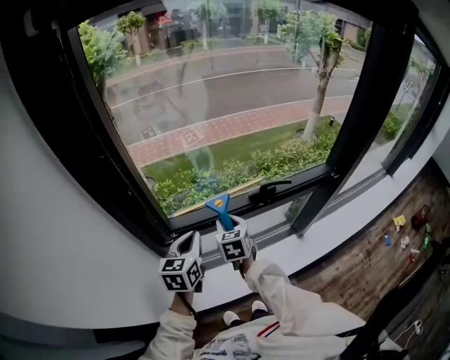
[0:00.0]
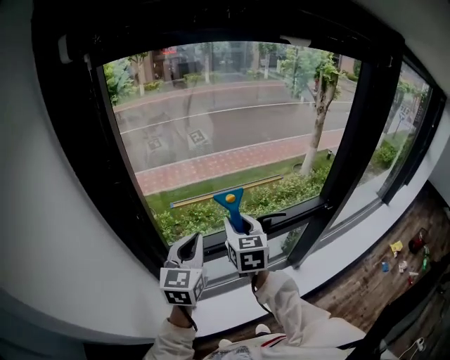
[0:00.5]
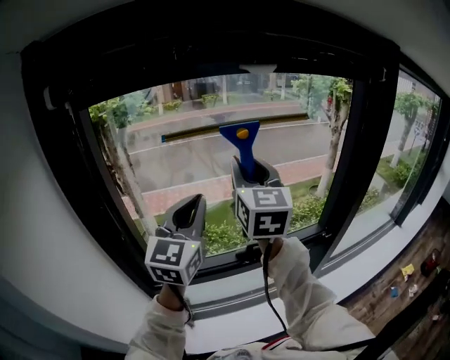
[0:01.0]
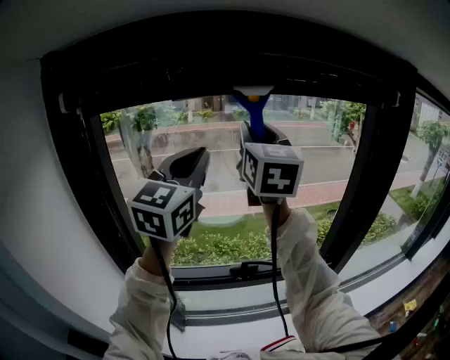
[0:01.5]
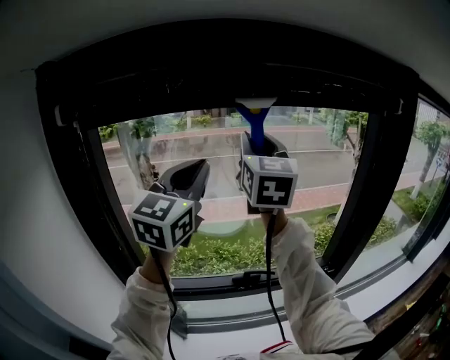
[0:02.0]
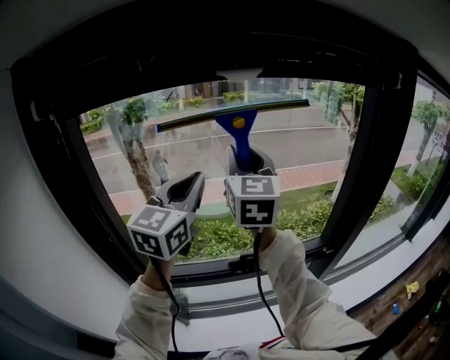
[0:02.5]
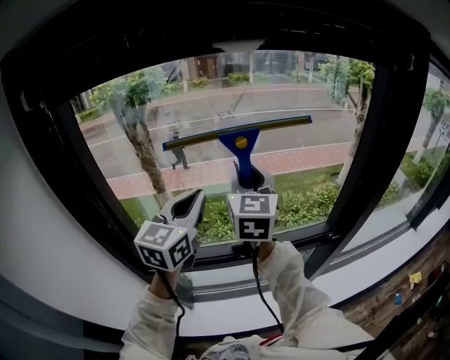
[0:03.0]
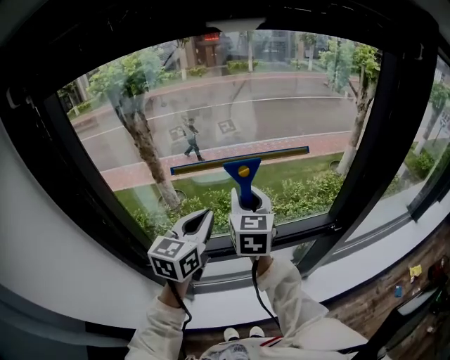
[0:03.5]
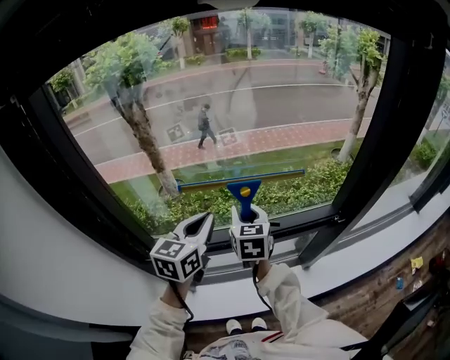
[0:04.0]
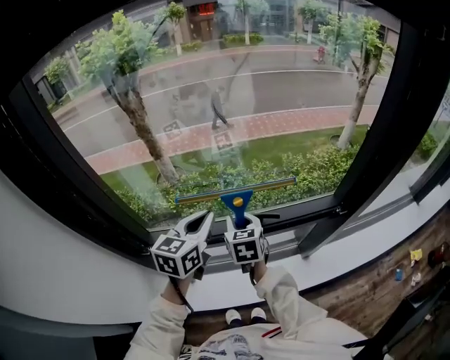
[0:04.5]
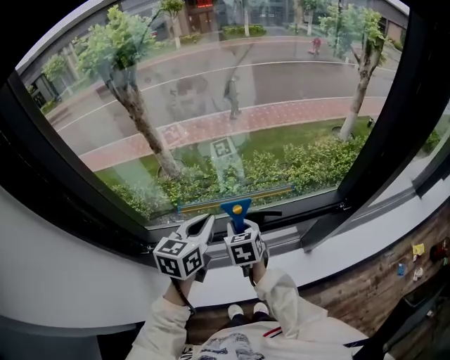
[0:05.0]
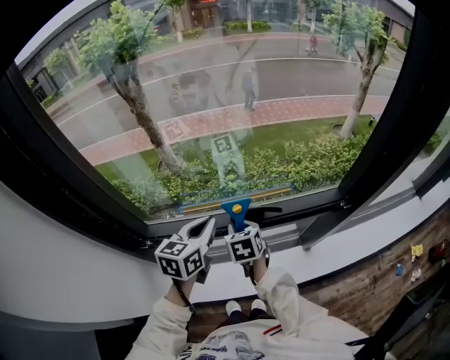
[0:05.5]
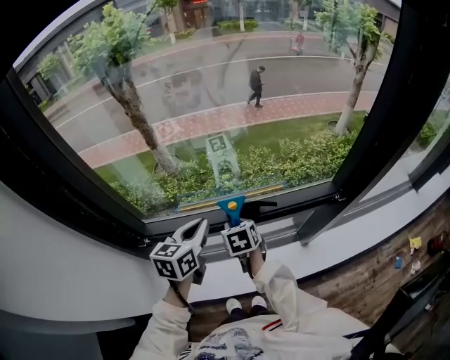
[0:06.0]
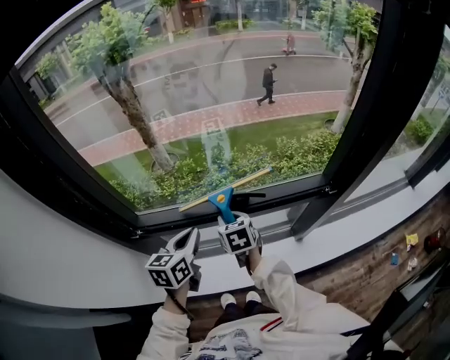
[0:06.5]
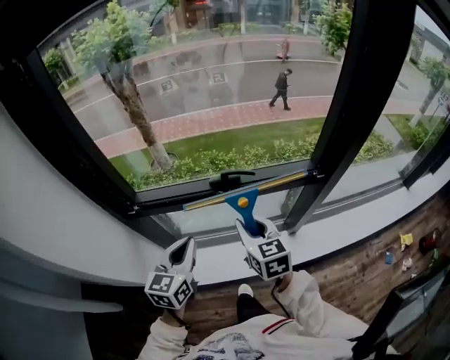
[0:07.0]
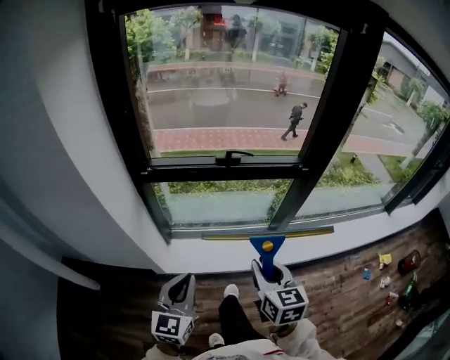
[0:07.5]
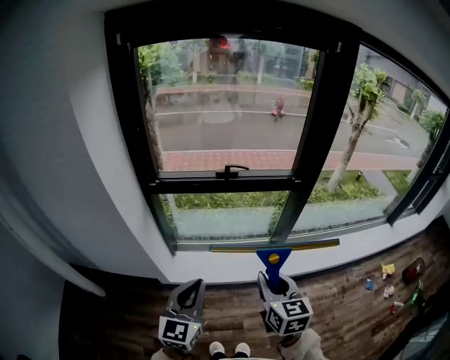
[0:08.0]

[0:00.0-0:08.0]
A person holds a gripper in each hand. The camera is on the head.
0:00.0 to 0:02.0: Both grippers move upward, about 50 cm. The left gripper angles its fingers upward, by some 30 degrees. Meanwhile the right gripper tips its fingers upward by some 50 degrees.
0:02.0 to 0:04.0: Both grippers move downward, roughly 40 cm. The right gripper tilts its fingers roughly 40 degrees downward; the left gripper changes its angle by approximately 30 degrees.
0:04.0 to 0:06.0: The left gripper moves downward, about 10 cm. The right gripper goes about 15 cm downward, and changes its angle by about 30 degrees.
0:06.0 to 0:08.0: The two grippers travel together, backward, about 60 cm. The left gripper turns by about 30 degrees. Meanwhile the right gripper rotates some 30 degrees.

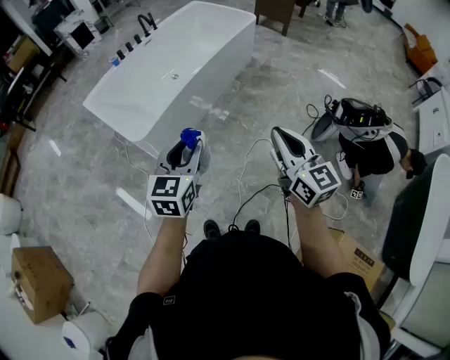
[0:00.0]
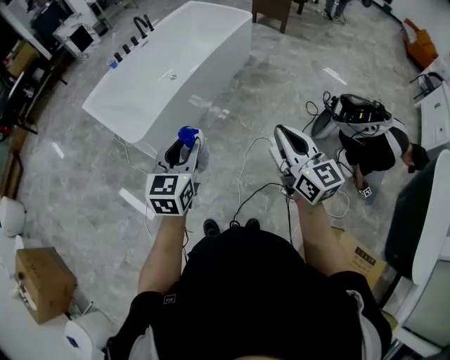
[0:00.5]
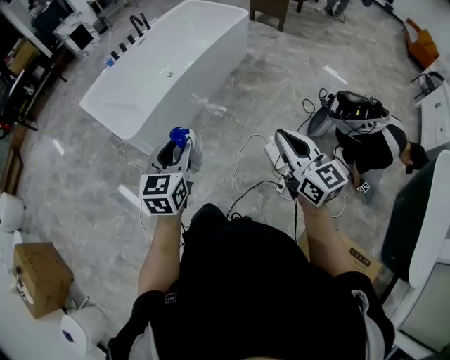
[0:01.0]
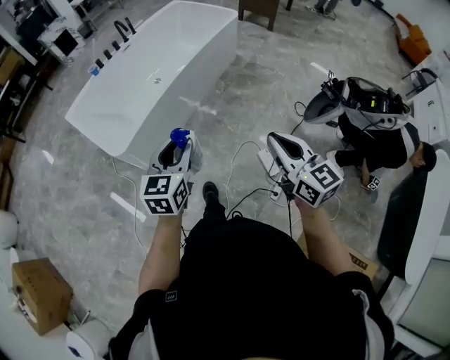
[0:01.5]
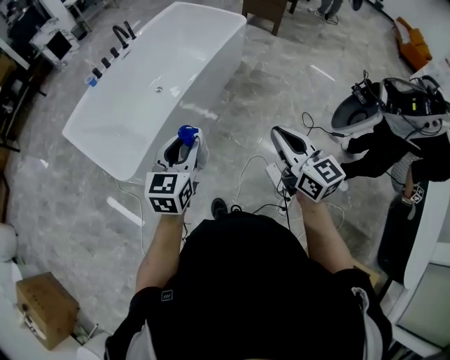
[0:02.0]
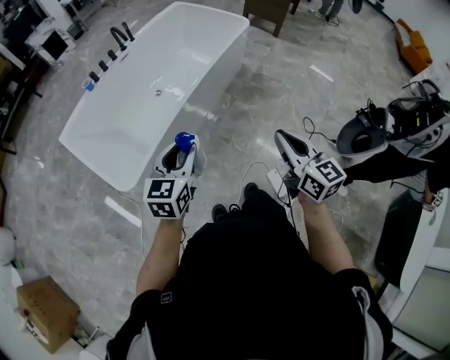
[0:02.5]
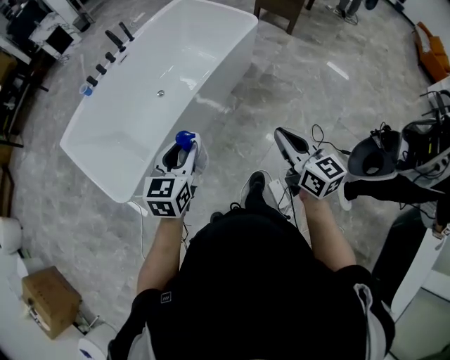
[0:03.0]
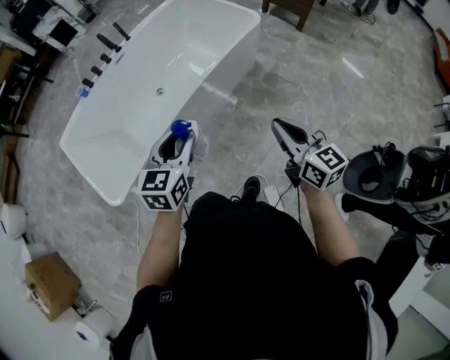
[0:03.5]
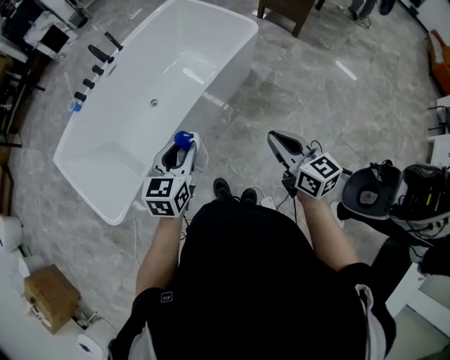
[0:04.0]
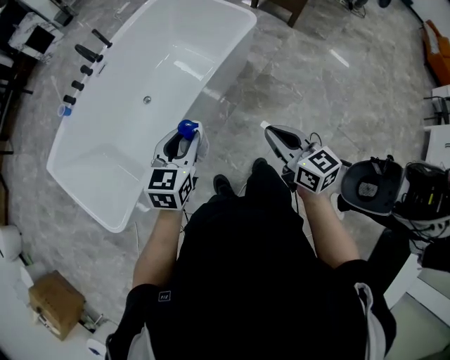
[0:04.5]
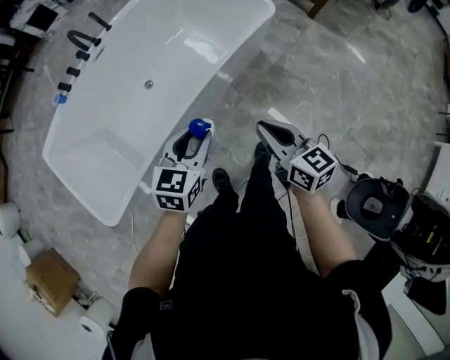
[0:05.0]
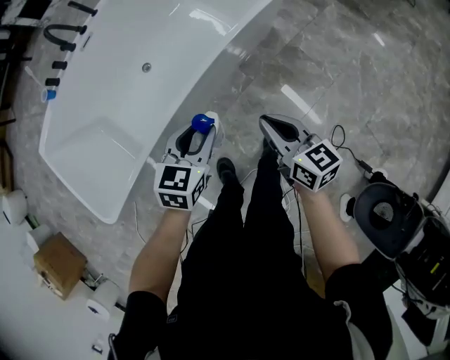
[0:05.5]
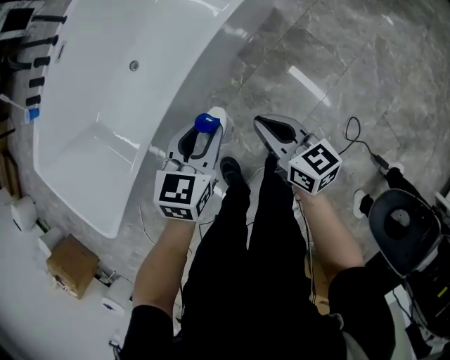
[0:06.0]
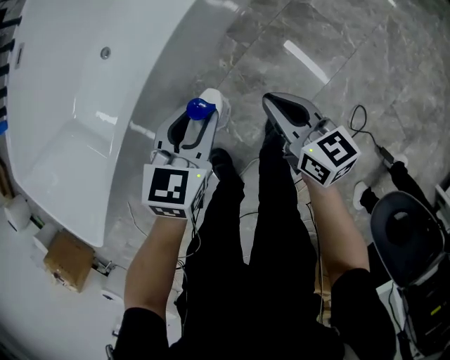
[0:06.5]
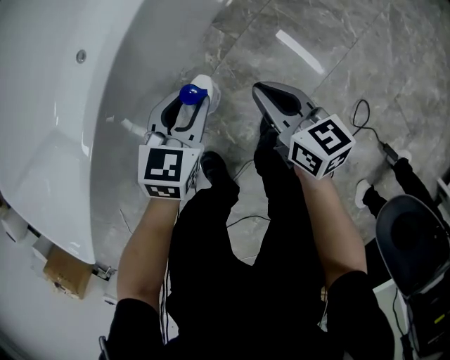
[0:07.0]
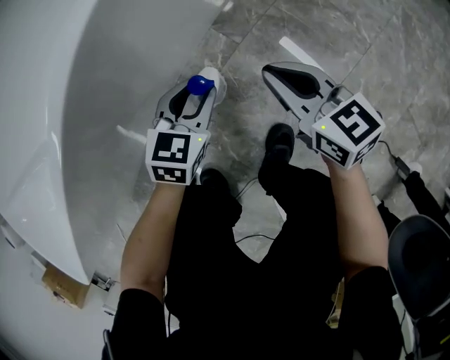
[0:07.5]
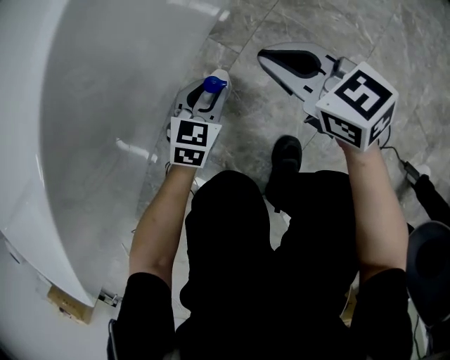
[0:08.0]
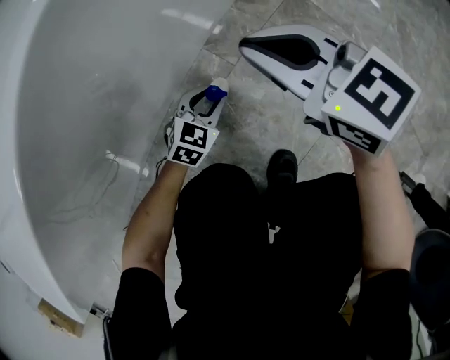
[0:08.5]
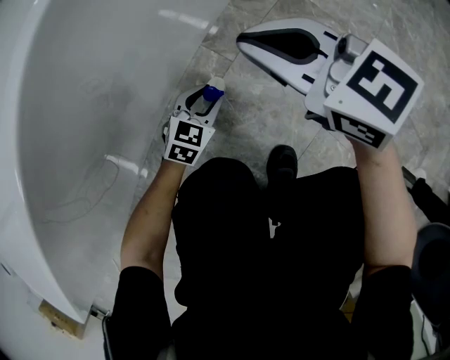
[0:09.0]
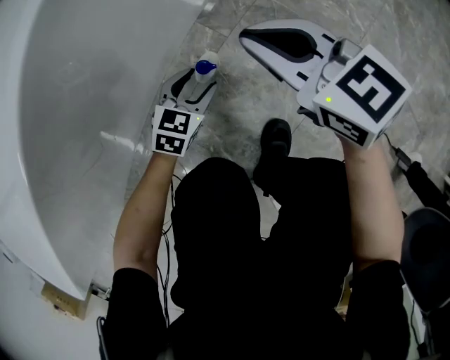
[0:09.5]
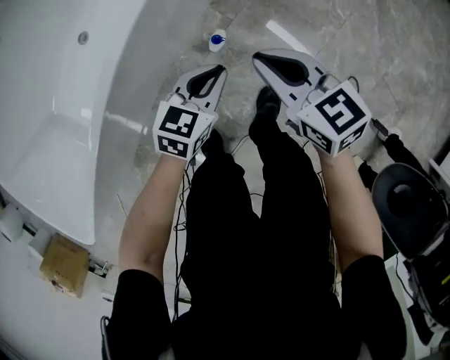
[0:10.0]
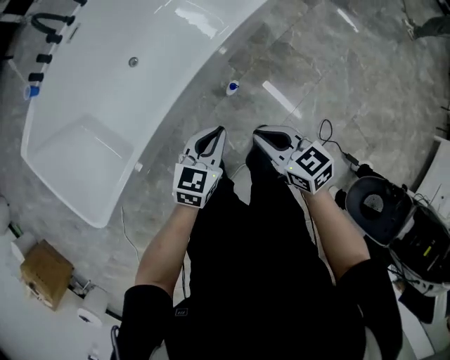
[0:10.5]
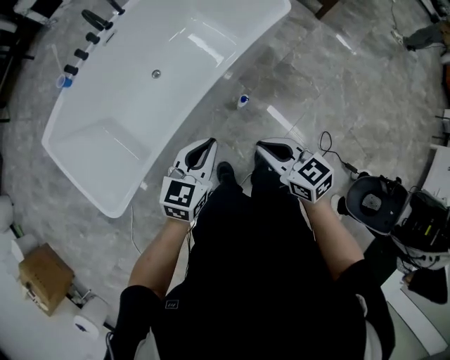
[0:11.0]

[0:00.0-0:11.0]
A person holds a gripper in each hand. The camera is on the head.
0:00.0 to 0:02.0: The two grippers go about 25 cm forward.
0:02.0 to 0:03.5: Both grippers move forward and to the right, roughly 35 cm.
0:03.5 to 0:05.5: The right gripper moves forward and downward, about 35 cm; the left gripper moves downward, forward and to the right, about 35 cm.
0:05.5 to 0:07.5: Both grippers travel together downward, approximately 40 cm.
0:07.5 to 0:09.0: The left gripper goes roughly 15 cm downward. Meanwhile the right gripper is displaced forward by roughly 5 cm, and turns by about 20 degrees.
0:09.0 to 0:11.0: The right gripper heads upward and backward, covering approximately 60 cm. Meanwhile the left gripper goes roughly 70 cm upward, swivels about 30 degrees, and closes.

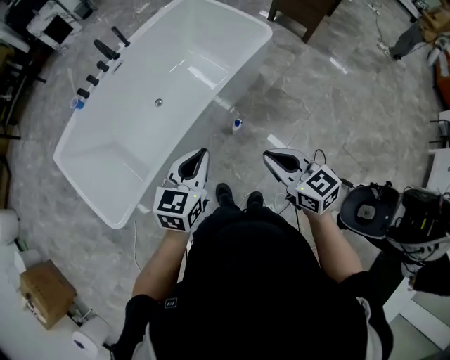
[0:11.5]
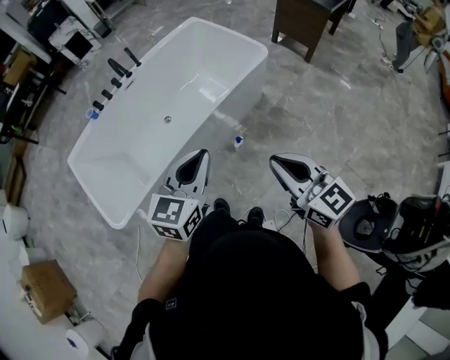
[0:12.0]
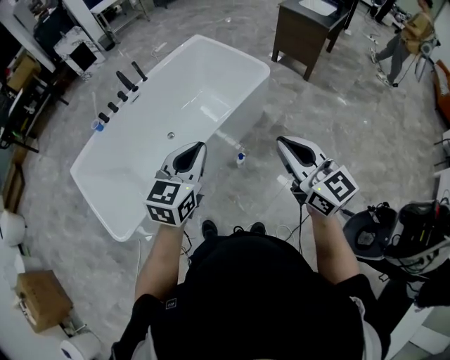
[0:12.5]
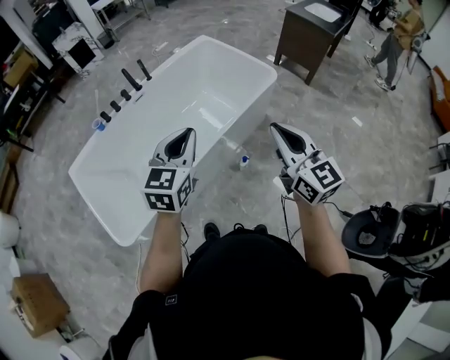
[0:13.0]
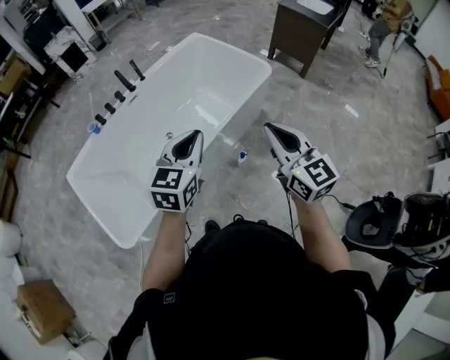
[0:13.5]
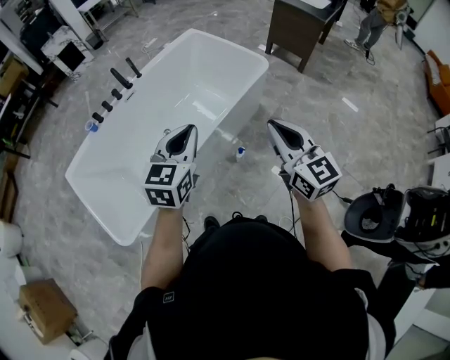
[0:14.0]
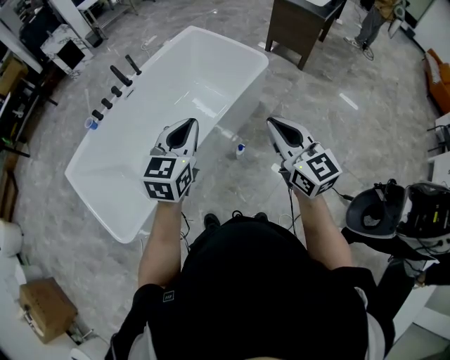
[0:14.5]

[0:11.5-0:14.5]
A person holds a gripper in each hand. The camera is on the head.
0:11.5 to 0:13.0: The left gripper heads upward and forward, covering roughly 15 cm. The right gripper heads upward, covering about 15 cm, and swivels about 30 degrees.
0:13.0 to 0:14.5: There are only small adjustments of the grippers.

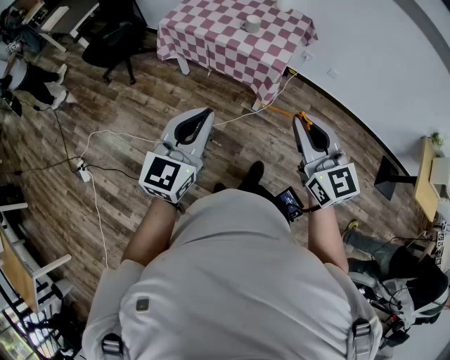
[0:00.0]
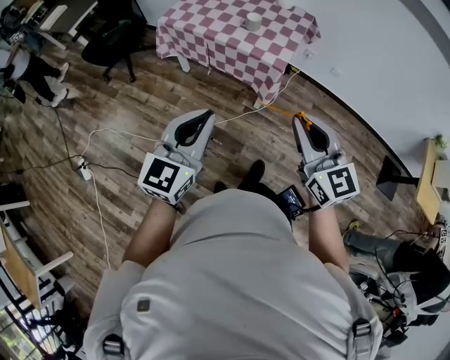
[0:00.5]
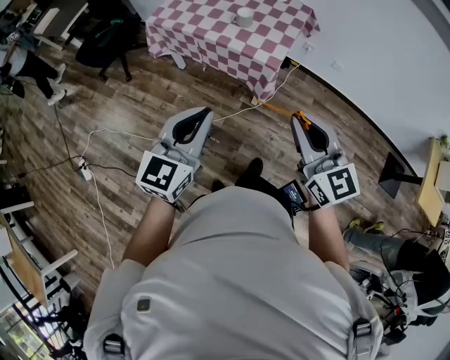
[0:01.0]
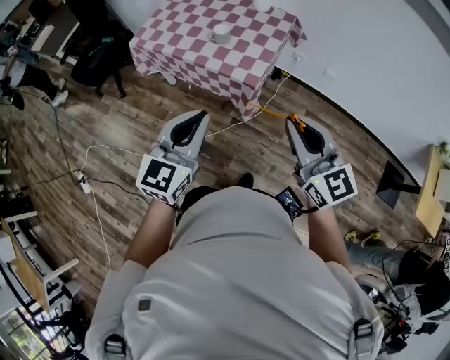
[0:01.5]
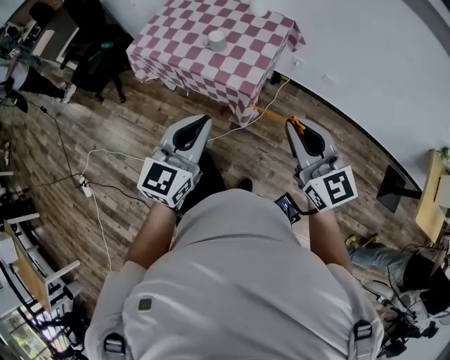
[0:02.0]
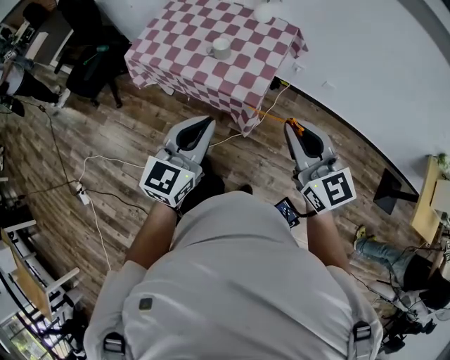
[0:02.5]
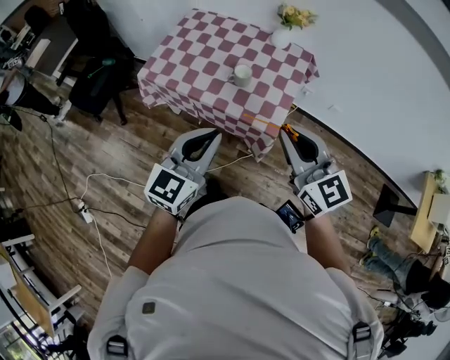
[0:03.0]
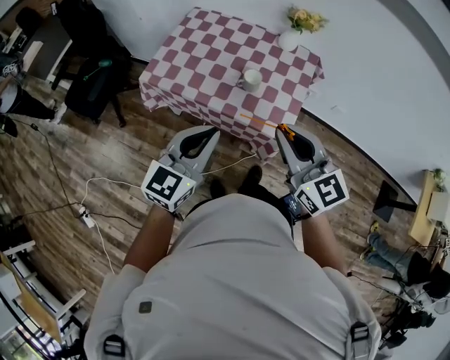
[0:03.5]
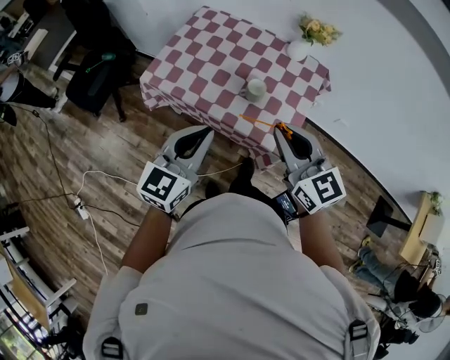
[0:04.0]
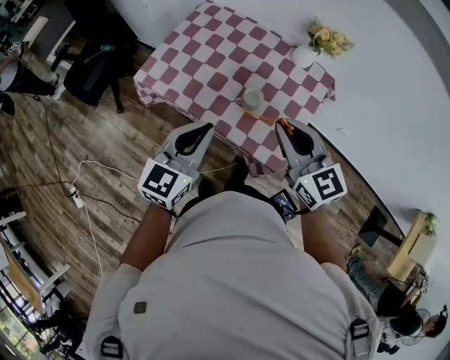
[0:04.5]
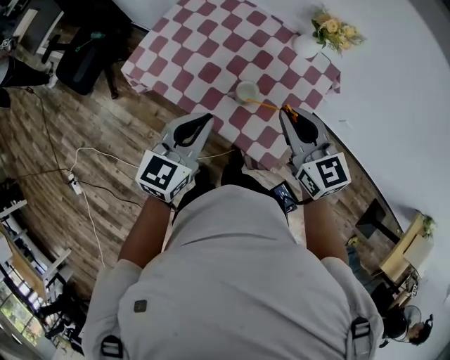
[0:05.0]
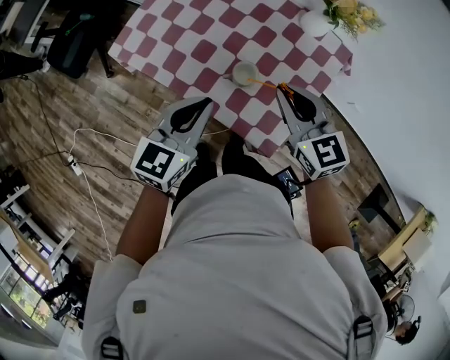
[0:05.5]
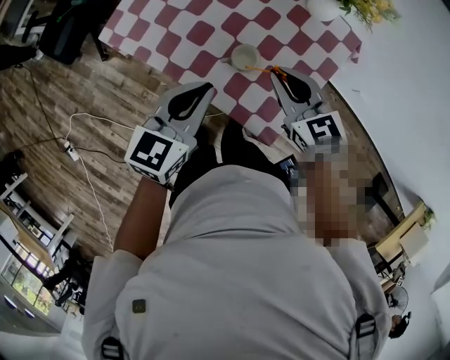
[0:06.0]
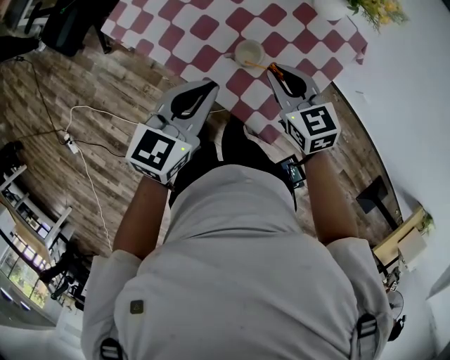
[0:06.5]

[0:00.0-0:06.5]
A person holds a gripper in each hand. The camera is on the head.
0:00.0 to 0:02.0: The left gripper heads to the right and forward, covering some 30 cm. The right gripper is displaced forward and to the right by approximately 25 cm.
0:02.0 to 0:04.5: Both grippers travel together forward and to the left, approximately 40 cm.
0:04.5 to 0:06.5: The right gripper goes some 25 cm downward and forward, and changes its angle by roughly 20 degrees; the left gripper travels downward, forward and to the right by some 15 cm.
